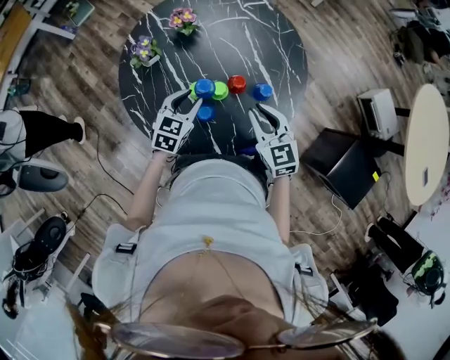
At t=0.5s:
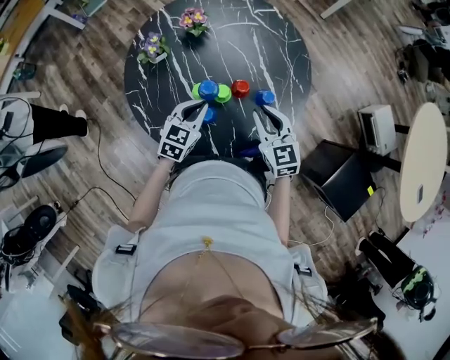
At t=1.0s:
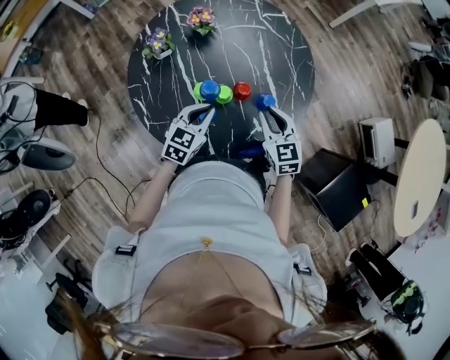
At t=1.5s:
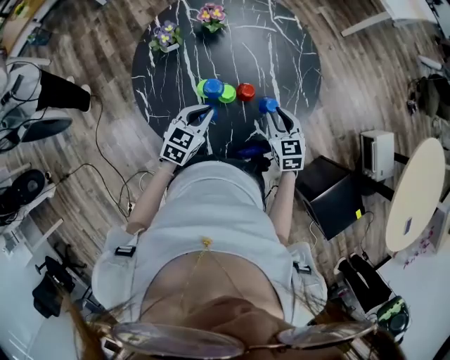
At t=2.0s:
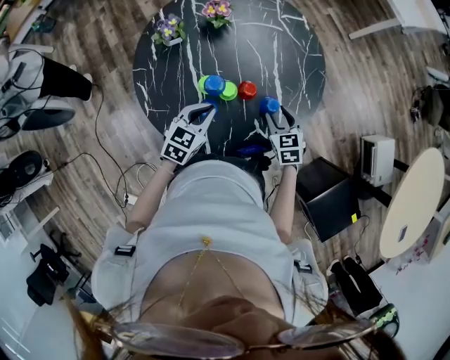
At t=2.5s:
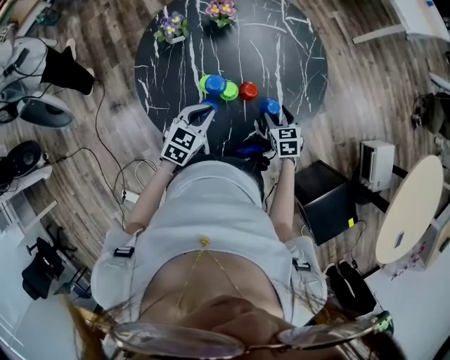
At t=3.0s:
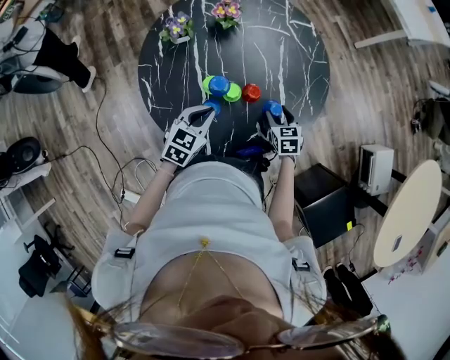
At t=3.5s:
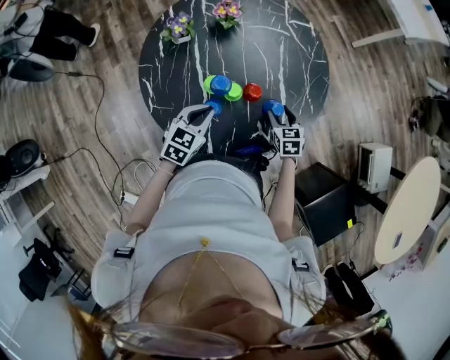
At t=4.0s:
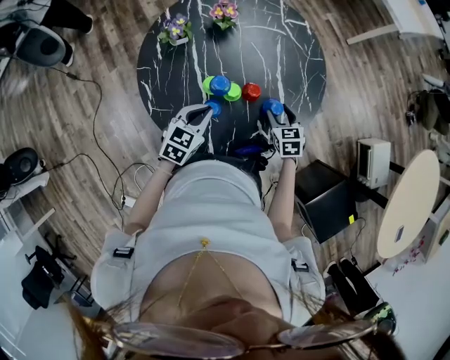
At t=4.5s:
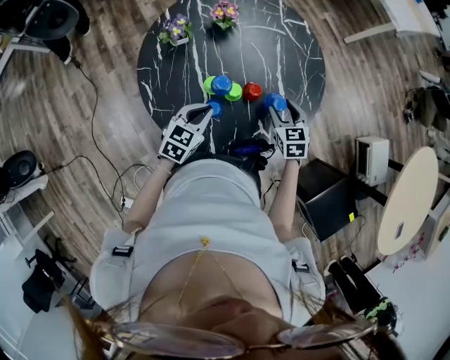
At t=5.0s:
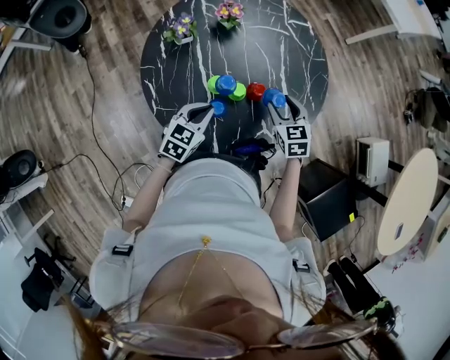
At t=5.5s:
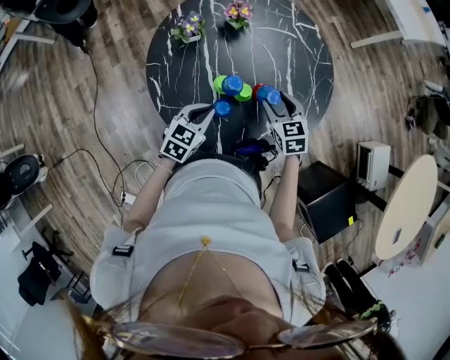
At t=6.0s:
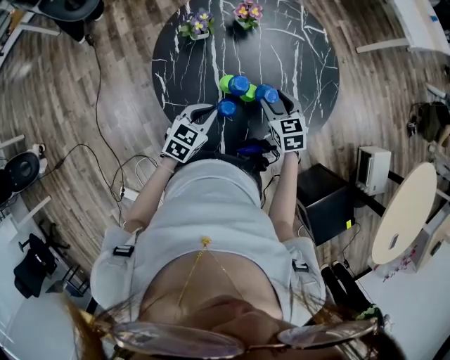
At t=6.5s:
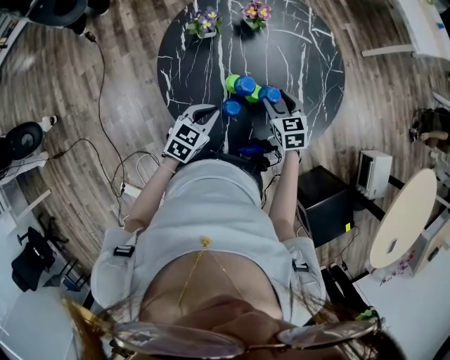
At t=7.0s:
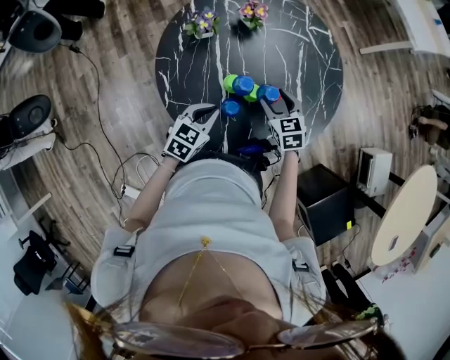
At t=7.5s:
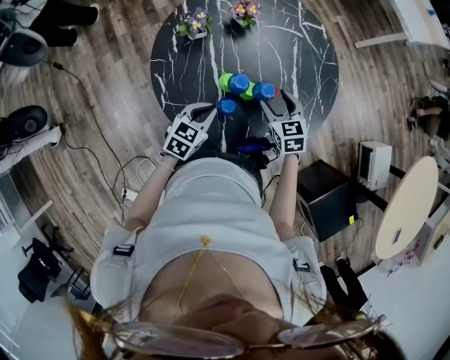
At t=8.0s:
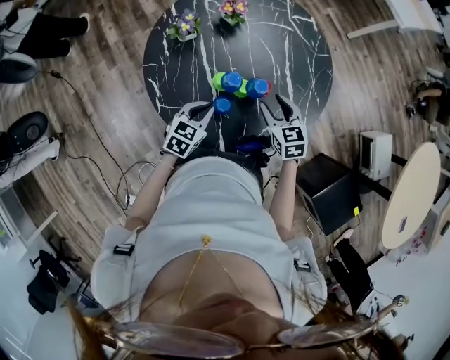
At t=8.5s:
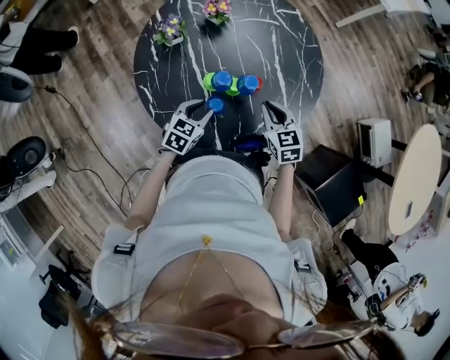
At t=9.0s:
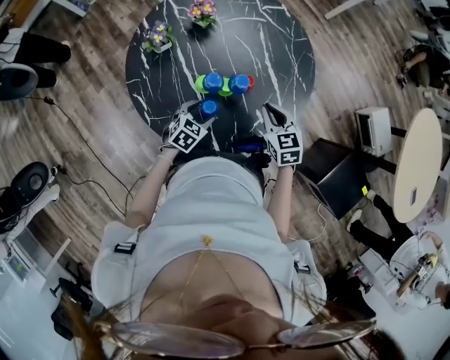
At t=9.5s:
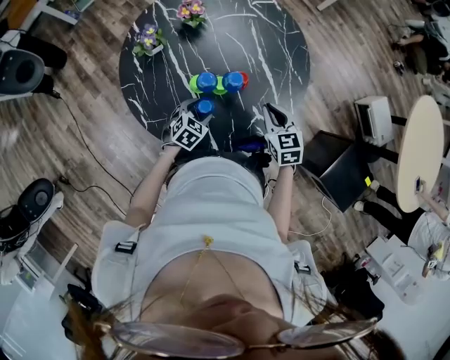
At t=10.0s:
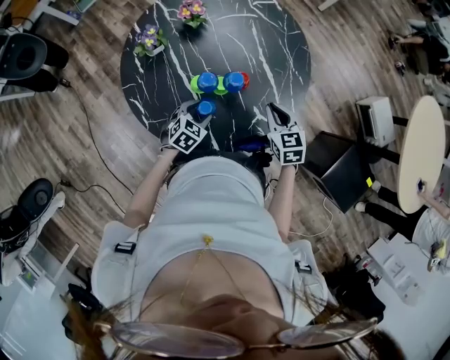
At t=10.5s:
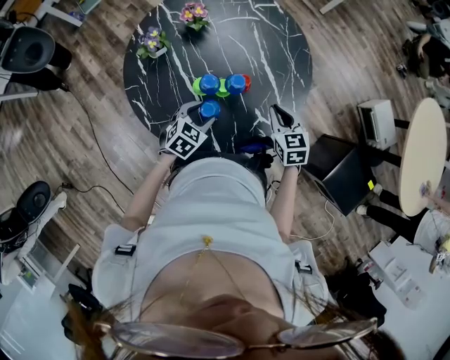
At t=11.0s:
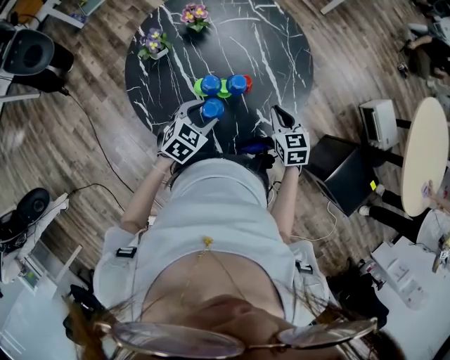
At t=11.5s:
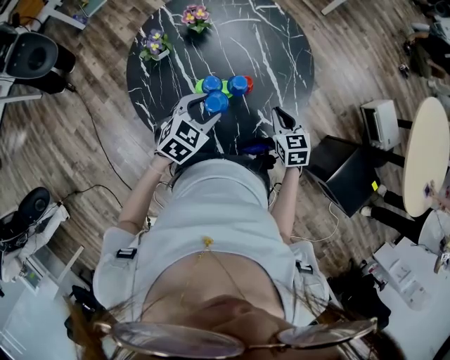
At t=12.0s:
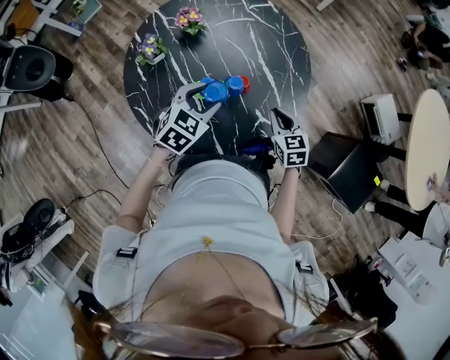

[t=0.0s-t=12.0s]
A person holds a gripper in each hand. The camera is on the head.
t=0.0s to t=2.0s: The left gripper ends up approximately 5 cm from where it was, and closes up; the right gripper moves downward, to the right and forward, some 15 cm, changes its angle by roughly 20 degrees, and opens its fingers.
t=2.0s to t=4.0s: The grippers make only small movements.
t=4.0s to t=6.0s: The right gripper travels to the left and upward by some 15 cm.
t=6.0s to t=8.0s: The grippers move only a little.
t=8.0s to t=10.0s: The right gripper moves to the right, approximately 10 cm, and closes up, while the left gripper heads downward, covering about 5 cm, turns by about 20 degrees, and opens.
t=10.0s to t=12.0s: The left gripper heads upward, covering some 15 cm.

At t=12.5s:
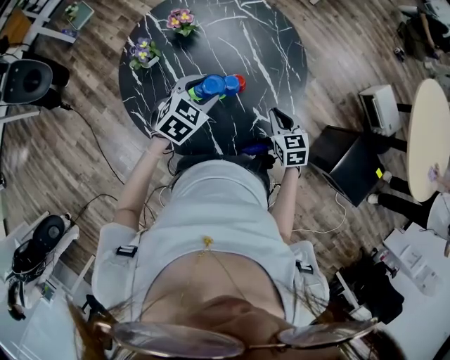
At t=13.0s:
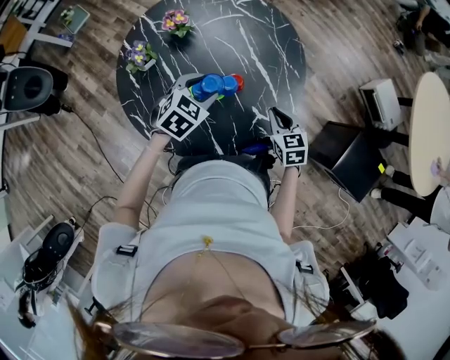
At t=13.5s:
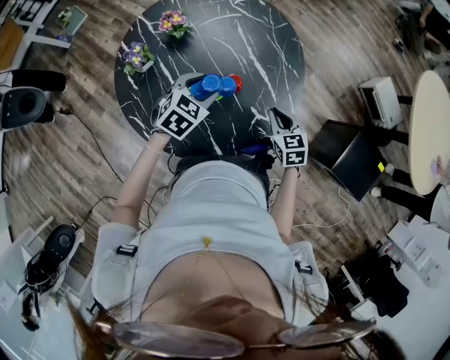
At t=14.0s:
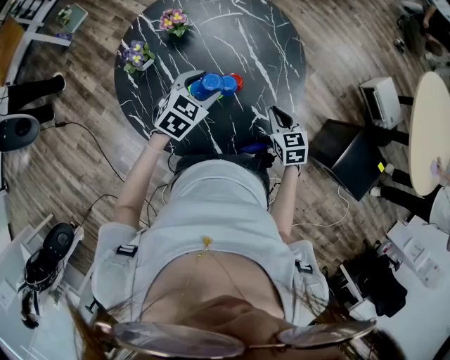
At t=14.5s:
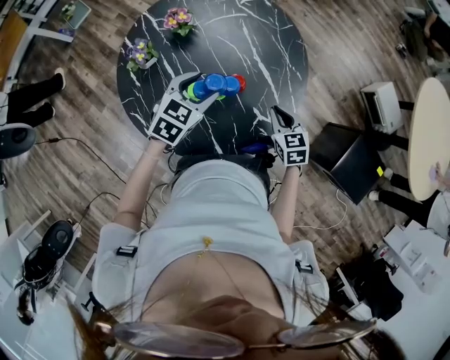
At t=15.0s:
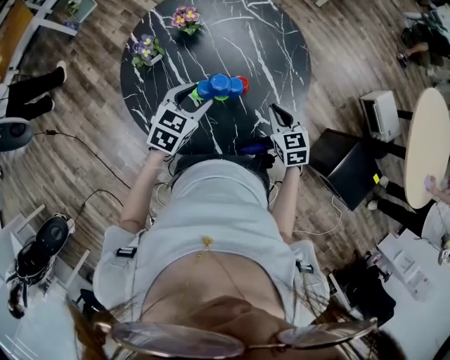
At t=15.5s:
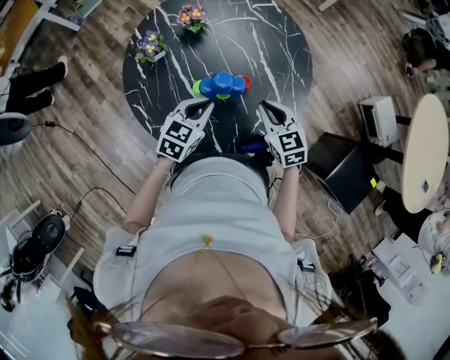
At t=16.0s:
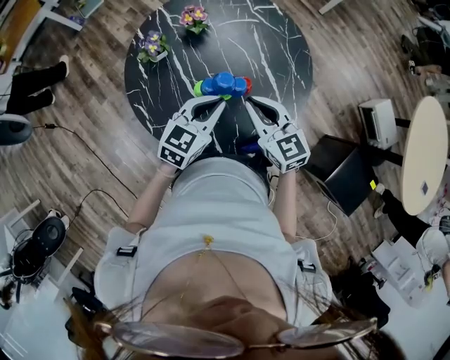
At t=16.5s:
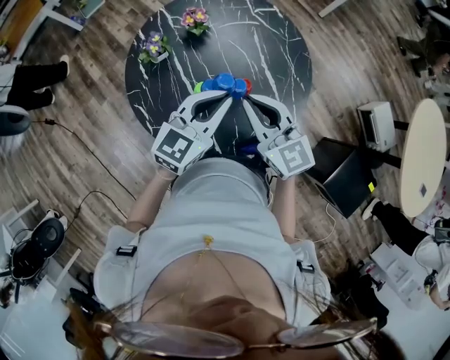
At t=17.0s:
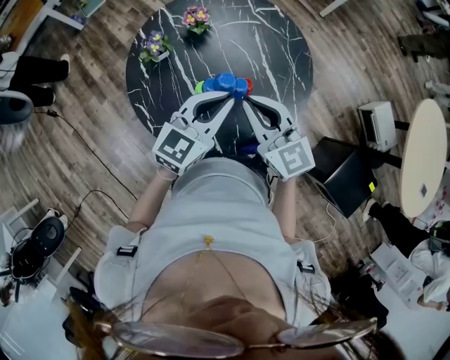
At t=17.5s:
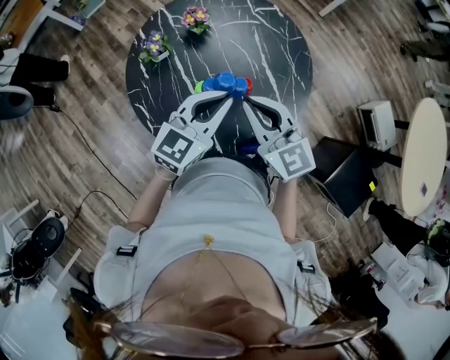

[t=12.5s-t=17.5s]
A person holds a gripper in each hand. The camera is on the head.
t=12.5s to t=15.0s: The grippers make only small movements.
t=15.0s to t=17.5s: The left gripper is displaced upward by roughly 10 cm, changes its angle by approximately 30 degrees, and closes up, while the right gripper shifts roughly 25 cm upward and to the left, and swivels about 30 degrees.

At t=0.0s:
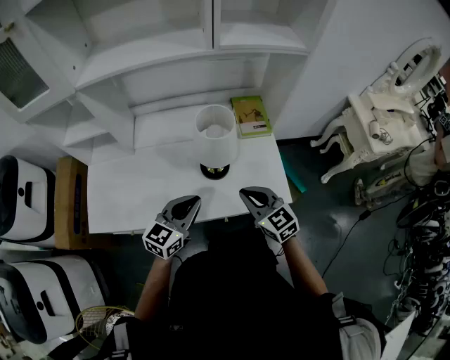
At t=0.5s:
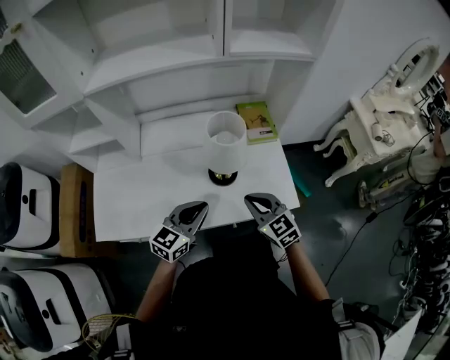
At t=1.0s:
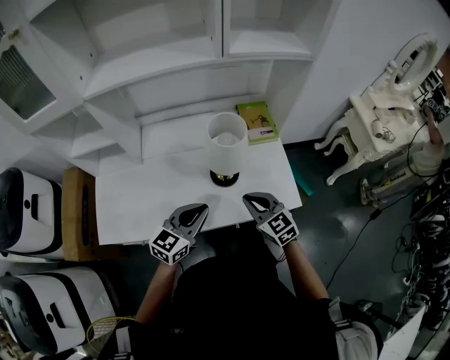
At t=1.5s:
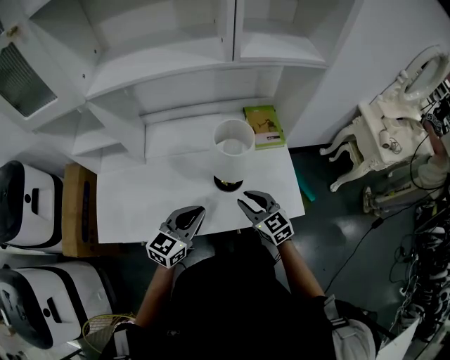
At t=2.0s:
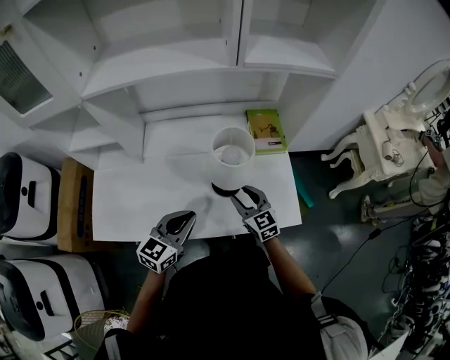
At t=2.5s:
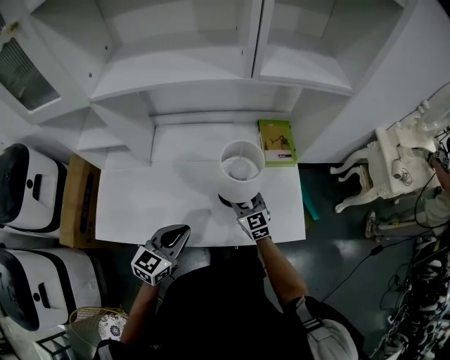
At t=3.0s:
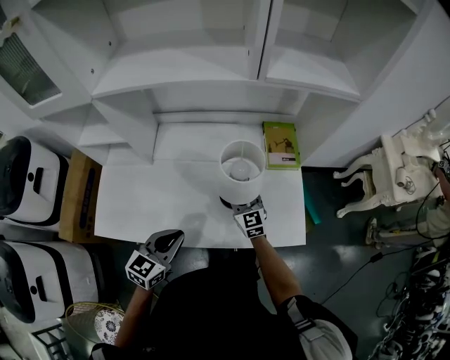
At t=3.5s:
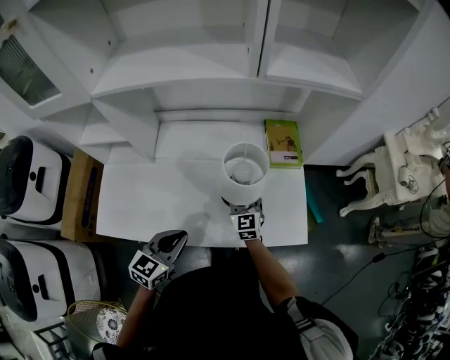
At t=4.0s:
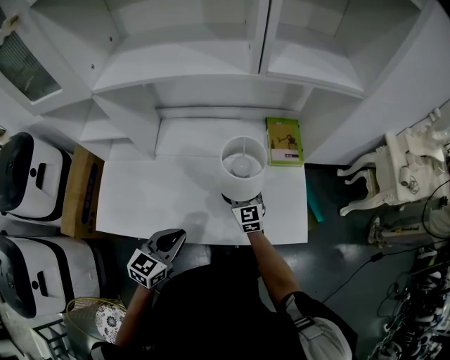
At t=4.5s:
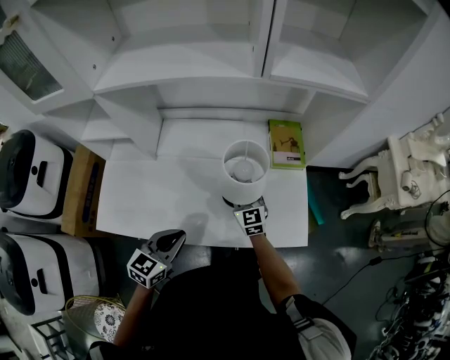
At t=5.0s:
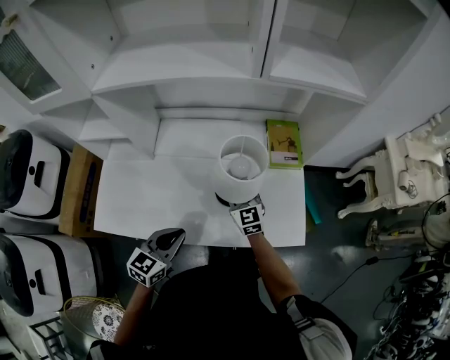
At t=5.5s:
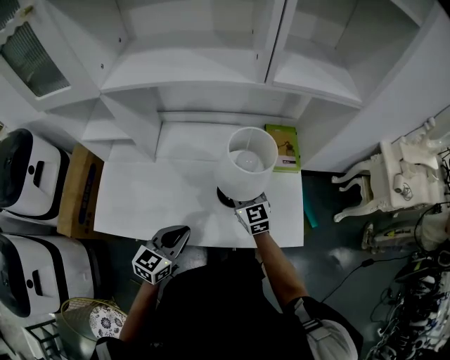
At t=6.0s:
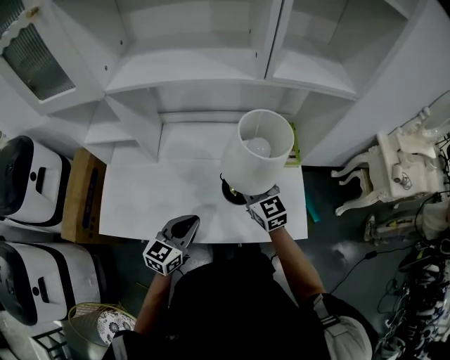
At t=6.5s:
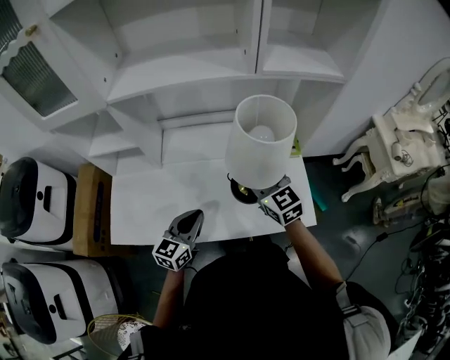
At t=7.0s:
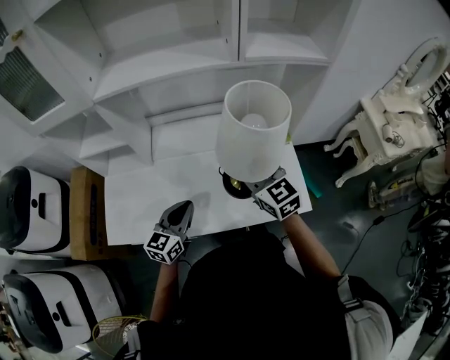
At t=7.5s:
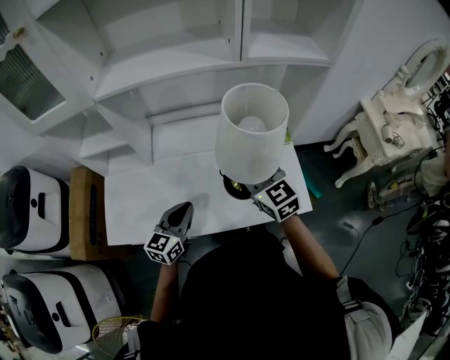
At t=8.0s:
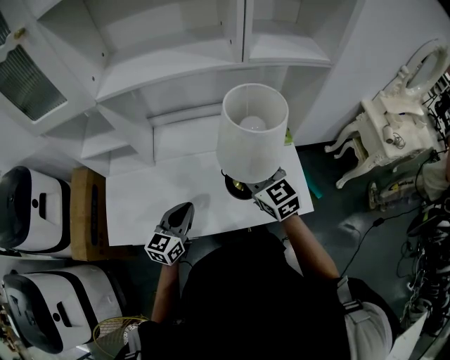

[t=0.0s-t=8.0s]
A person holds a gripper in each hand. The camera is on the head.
t=0.0s to t=2.0s: The left gripper shifts by roughly 5 cm, while the right gripper heads forward and downward, covering some 15 cm, and opens its fingers.
t=2.0s to t=4.0s: The right gripper moves forward, approximately 10 cm. Meanwhile the left gripper changes place by approximately 5 cm.
t=4.0s to t=6.0s: The right gripper heads upward, covering some 15 cm.
t=6.0s to t=8.0s: The right gripper heads upward, covering approximately 5 cm.

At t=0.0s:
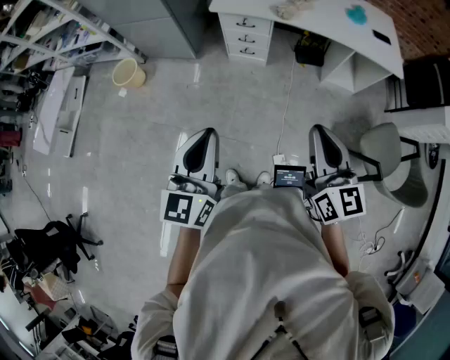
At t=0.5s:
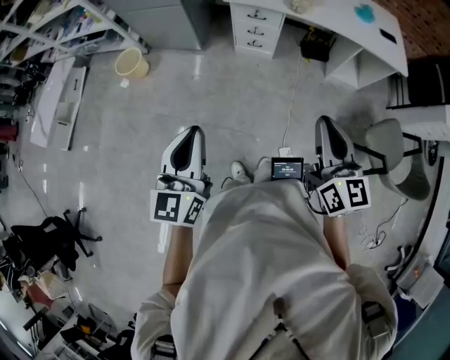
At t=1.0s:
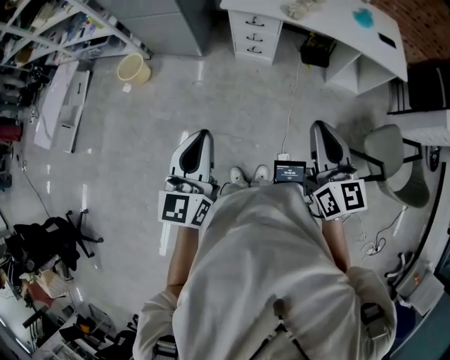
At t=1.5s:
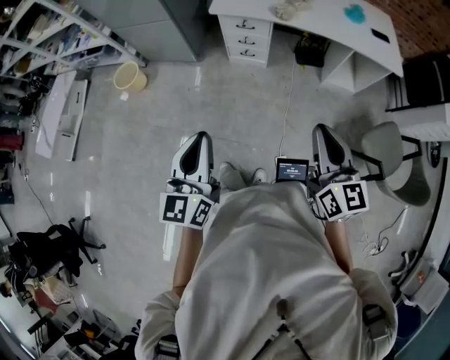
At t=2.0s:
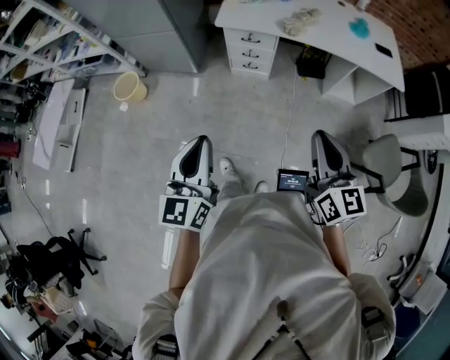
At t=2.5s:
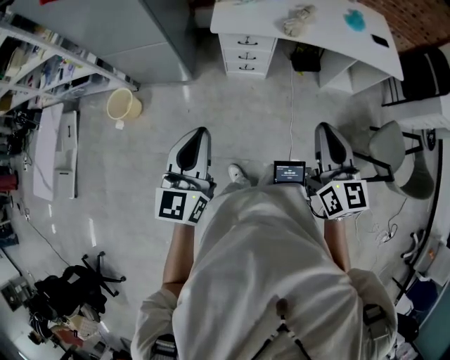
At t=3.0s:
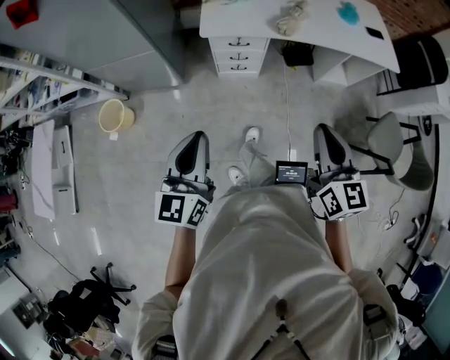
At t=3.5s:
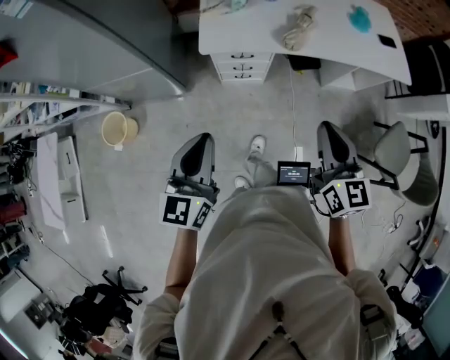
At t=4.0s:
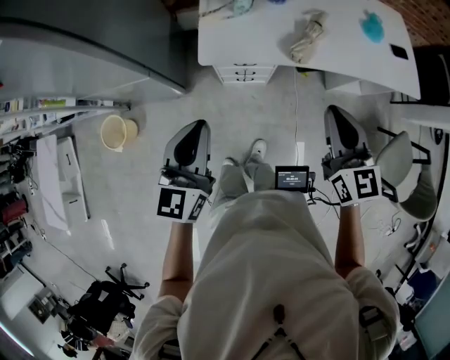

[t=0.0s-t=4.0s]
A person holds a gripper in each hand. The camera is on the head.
t=0.0s to t=2.0s: The right gripper moves forward, approximately 5 cm; the left gripper swings left and right, some 10 cm each way, with 2 reversals.
t=2.0s to t=4.0s: The two grippers go about 40 cm forward.
